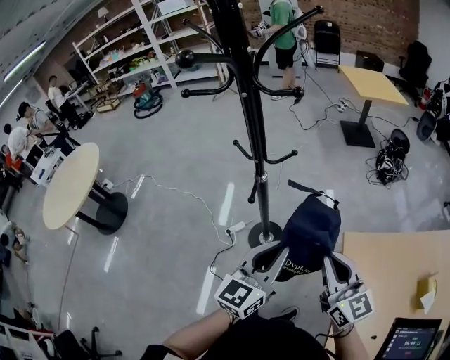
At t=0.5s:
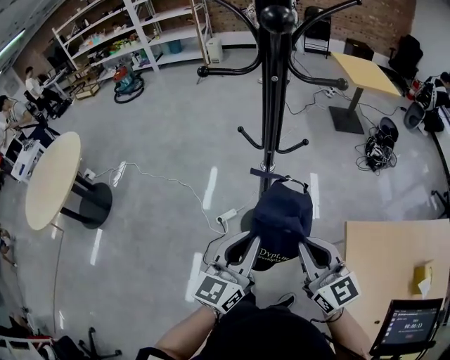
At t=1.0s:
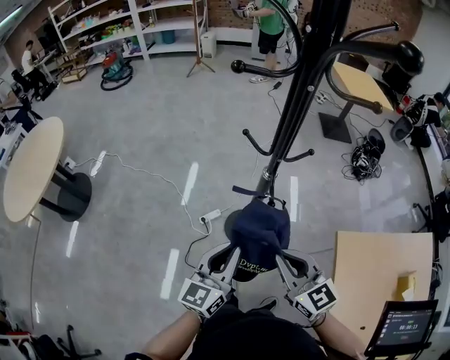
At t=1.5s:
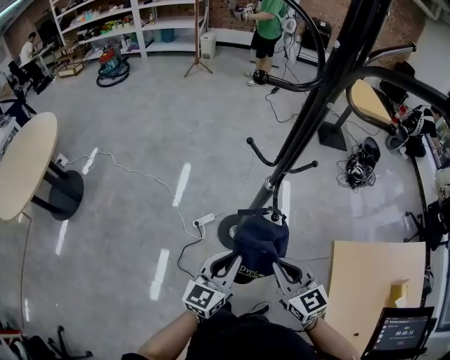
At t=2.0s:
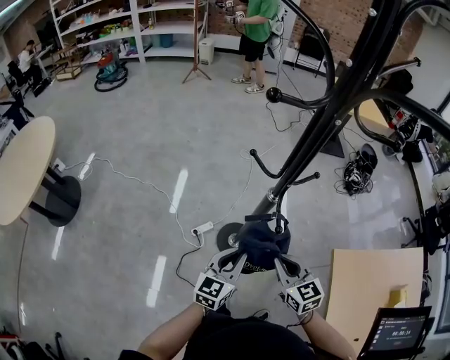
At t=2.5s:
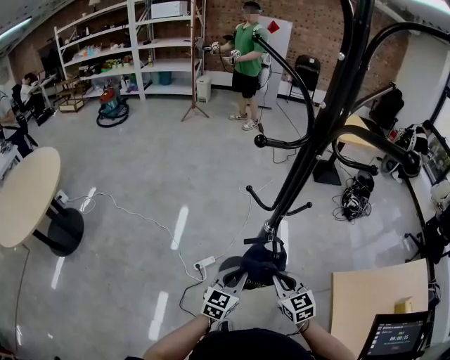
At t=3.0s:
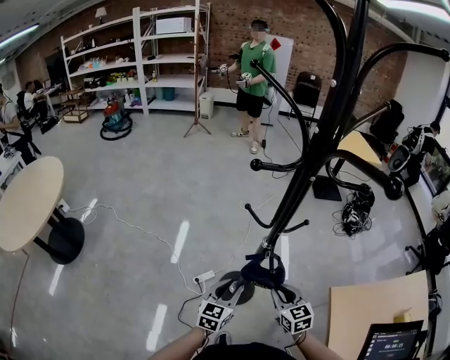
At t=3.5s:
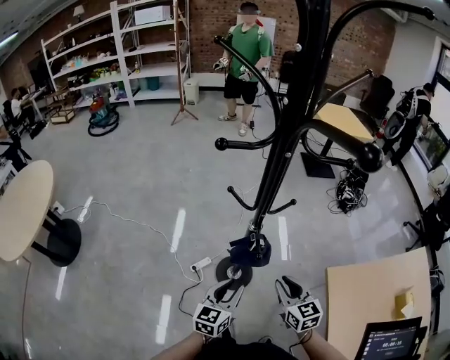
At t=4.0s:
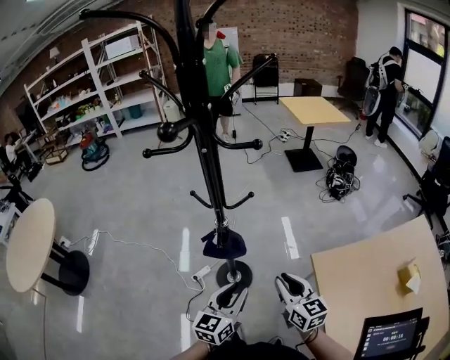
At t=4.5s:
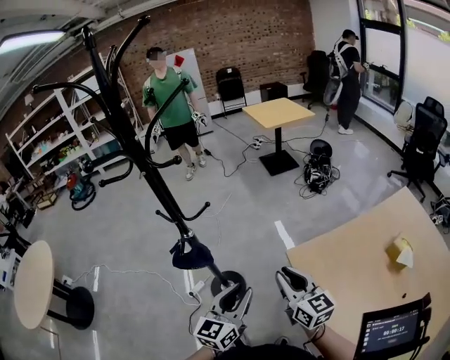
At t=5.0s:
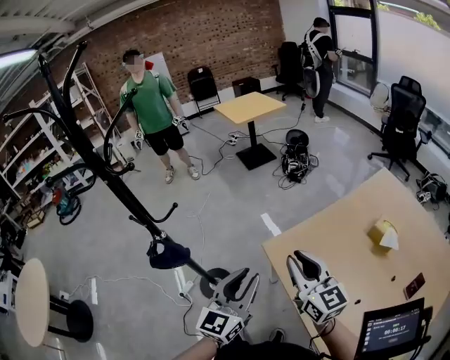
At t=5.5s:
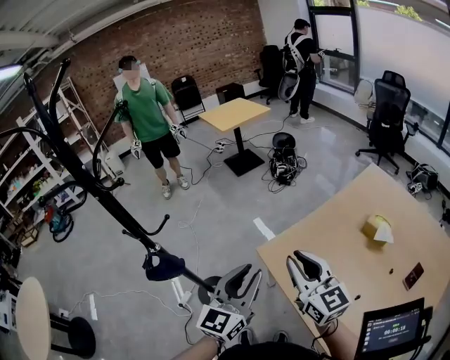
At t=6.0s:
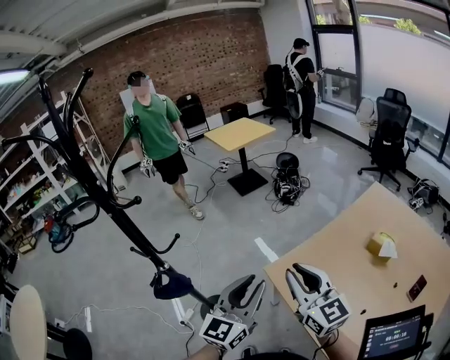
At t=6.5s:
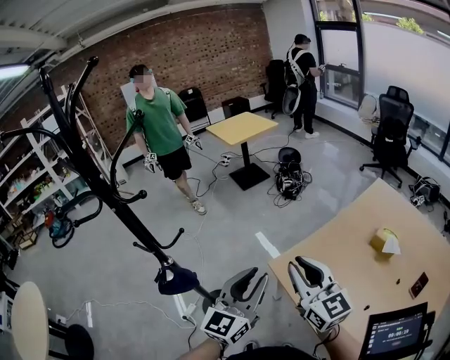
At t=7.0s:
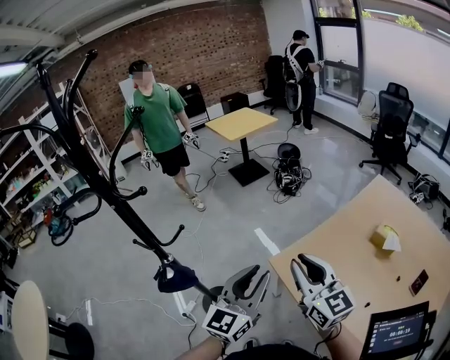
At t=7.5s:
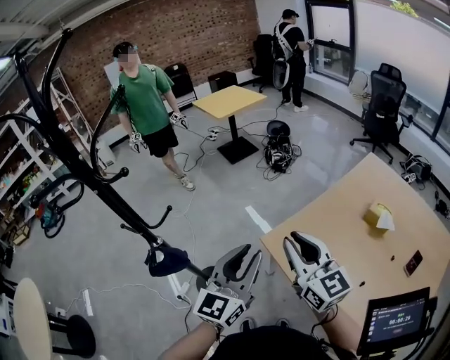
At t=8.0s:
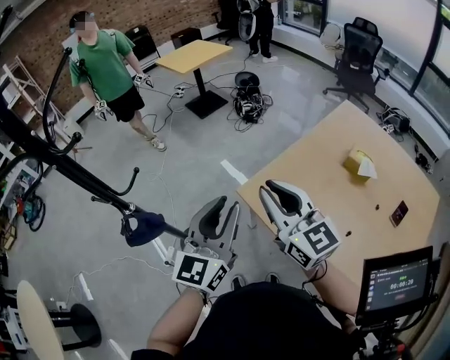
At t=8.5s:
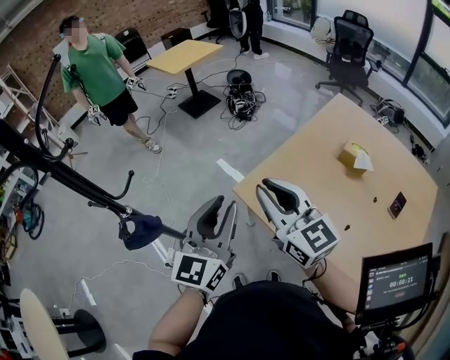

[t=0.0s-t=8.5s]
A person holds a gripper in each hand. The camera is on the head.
t=0.0s to t=2.0s: Both grippers move to the left, downward and forward, roughly 25 cm. The right gripper turns by approximately 30 degrees.
t=2.0s to t=4.0s: The left gripper goes approximately 15 cm to the right, upward and backward, while the right gripper is displaced to the right by some 15 cm, and turns by approximately 20 degrees.
t=4.0s to t=6.5s: Both grippers travel together to the right and upward, approximately 25 cm. The right gripper changes its angle by approximately 30 degrees; the left gripper changes its angle by about 30 degrees.
t=6.5s to t=8.5s: The grippers stay close to where they were, moving slightly.

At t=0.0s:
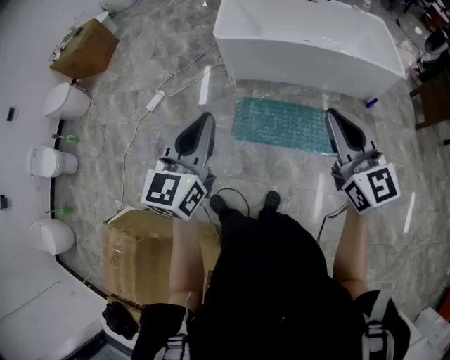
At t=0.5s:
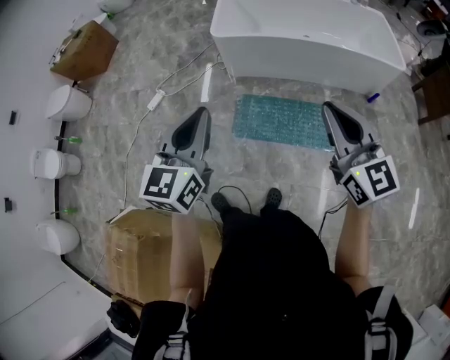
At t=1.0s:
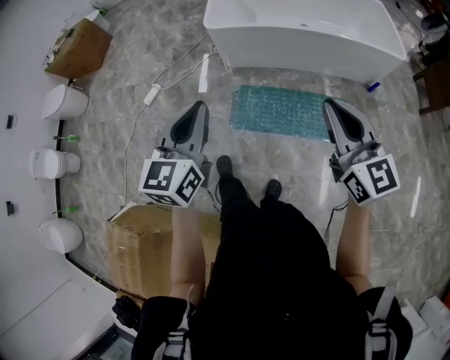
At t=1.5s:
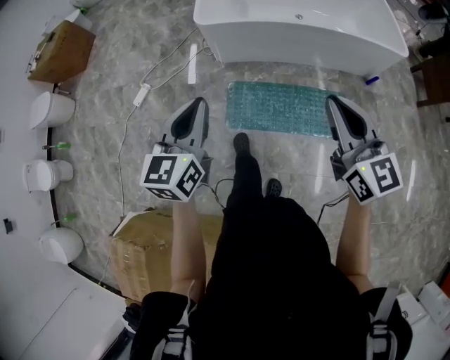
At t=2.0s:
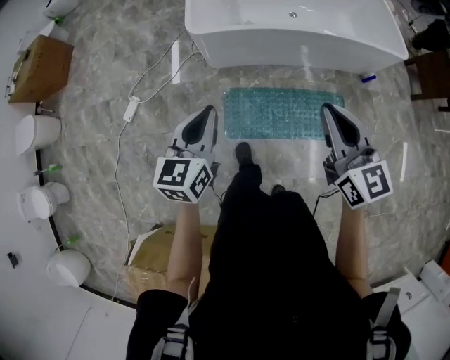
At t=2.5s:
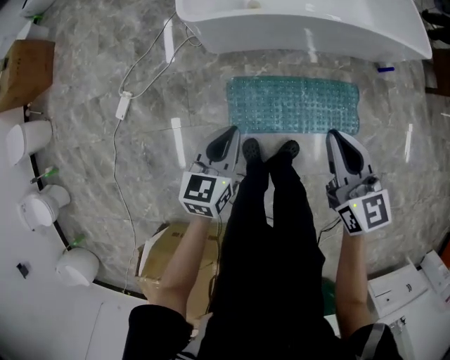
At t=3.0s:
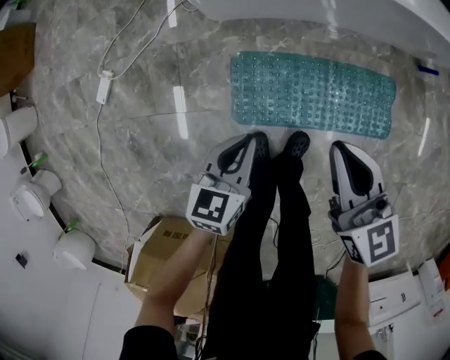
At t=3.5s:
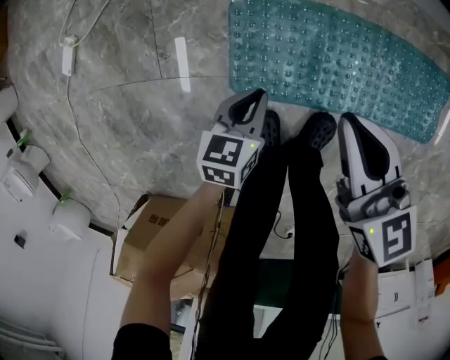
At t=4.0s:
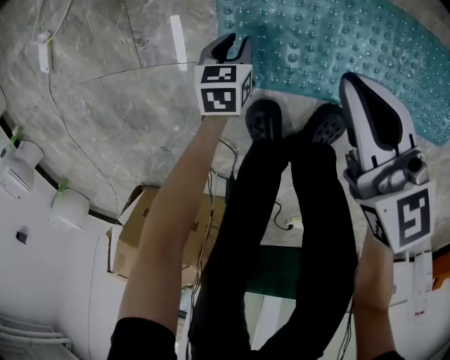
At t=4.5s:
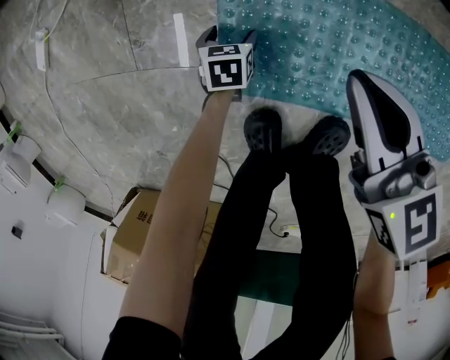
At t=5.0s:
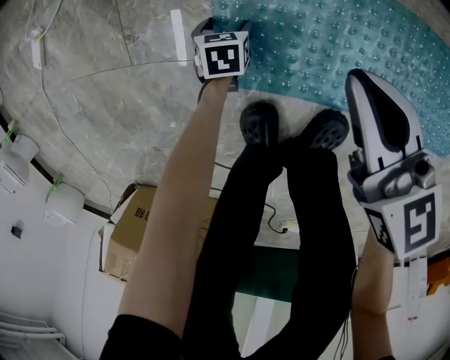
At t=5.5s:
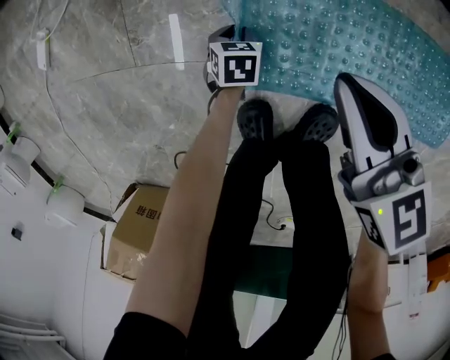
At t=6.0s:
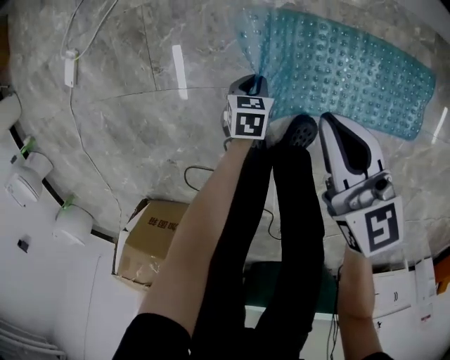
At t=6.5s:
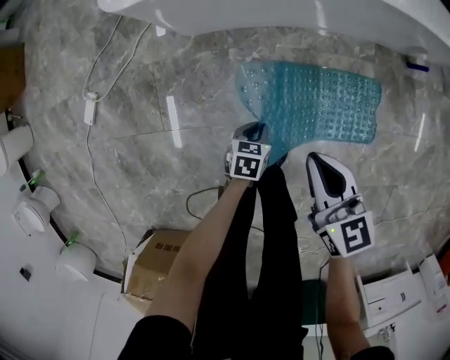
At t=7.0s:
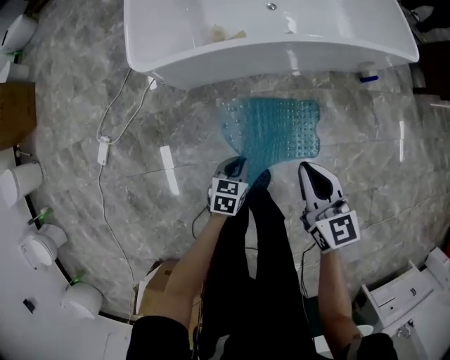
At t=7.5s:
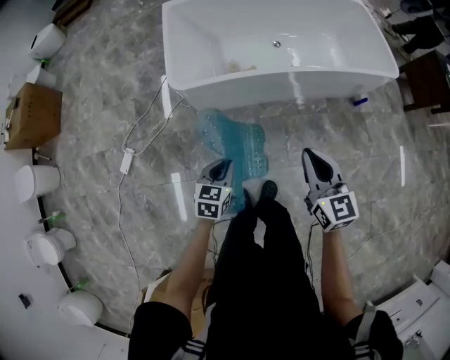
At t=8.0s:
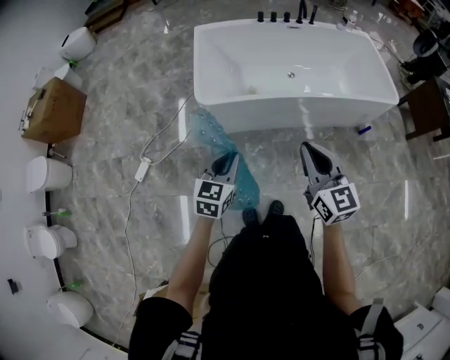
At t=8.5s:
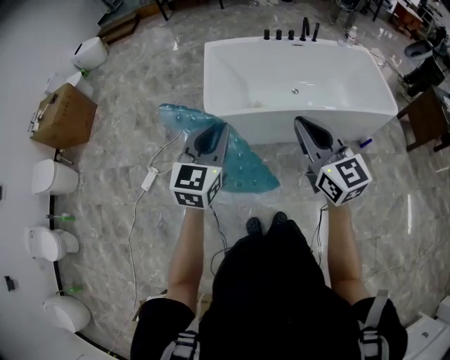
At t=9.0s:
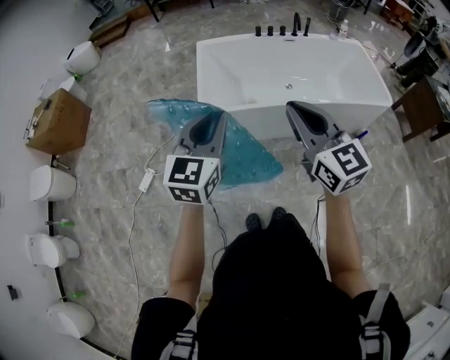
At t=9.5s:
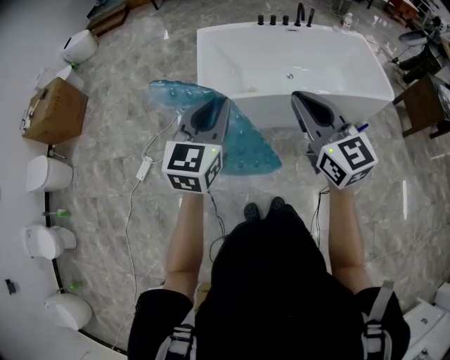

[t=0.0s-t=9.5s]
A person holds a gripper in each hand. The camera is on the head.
t=0.0s to t=2.0s: The left gripper heads forward and downward, covering some 35 cm. Meanwhile the right gripper shifts about 25 cm forward.
t=2.0s to t=4.0s: Both grippers move downward, some 90 cm. The left gripper tips its fingers downward by some 40 degrees; the right gripper rotates approximately 30 degrees.
t=4.0s to t=5.5s: The left gripper is displaced downward by roughly 5 cm, and opens, then closes once more.
t=5.5s to t=7.5s: The grippers both shift upward by about 70 cm. The right gripper rotates approximately 30 degrees. Meanwhile the left gripper tips its fingers upward by some 30 degrees.
t=7.5s to t=9.5s: The left gripper travels upward by roughly 35 cm, and angles its fingers upward, by about 30 degrees. Meanwhile the right gripper travels upward and to the left by roughly 25 cm, and swivels some 20 degrees.

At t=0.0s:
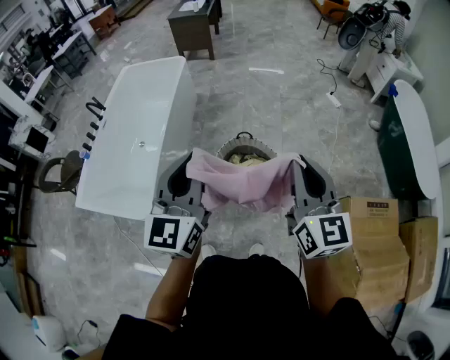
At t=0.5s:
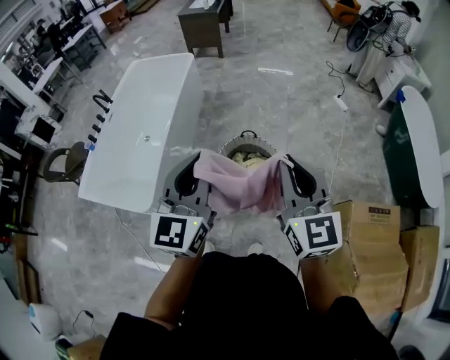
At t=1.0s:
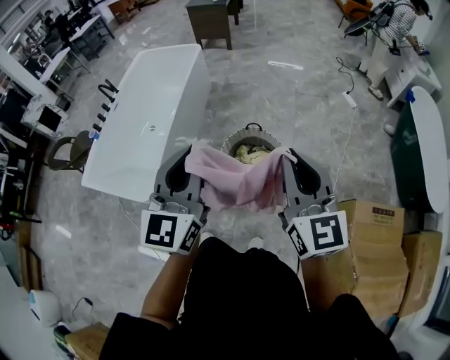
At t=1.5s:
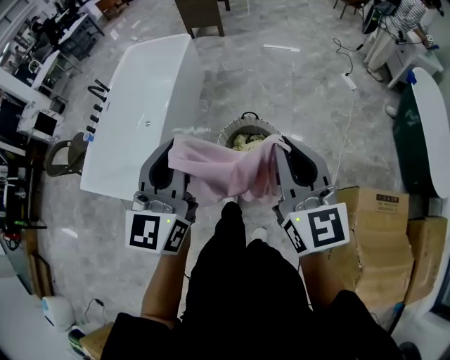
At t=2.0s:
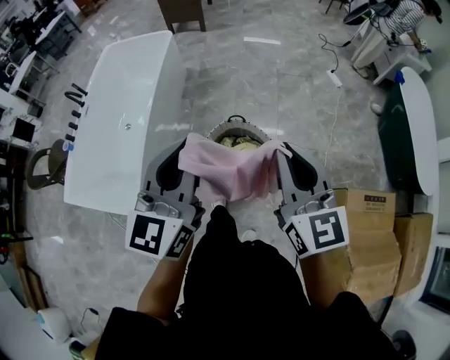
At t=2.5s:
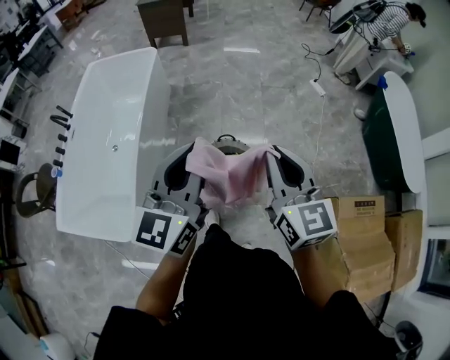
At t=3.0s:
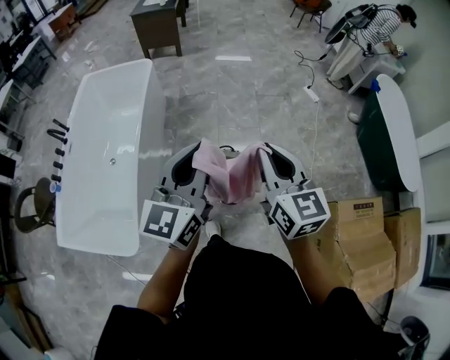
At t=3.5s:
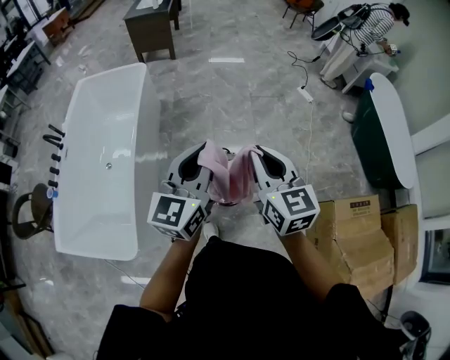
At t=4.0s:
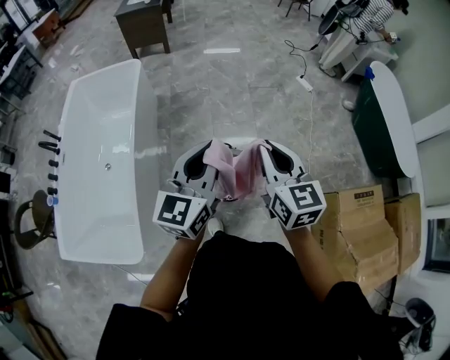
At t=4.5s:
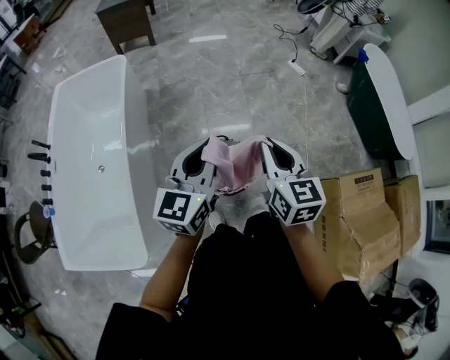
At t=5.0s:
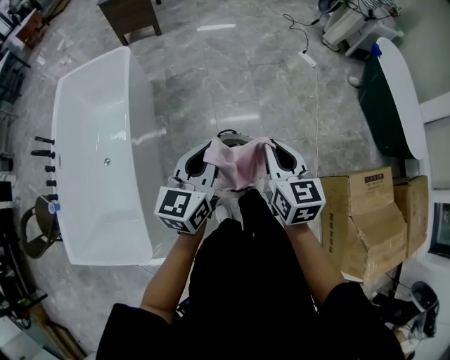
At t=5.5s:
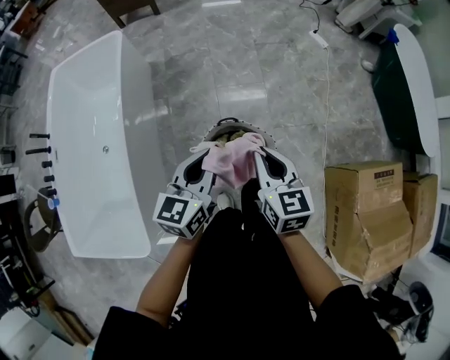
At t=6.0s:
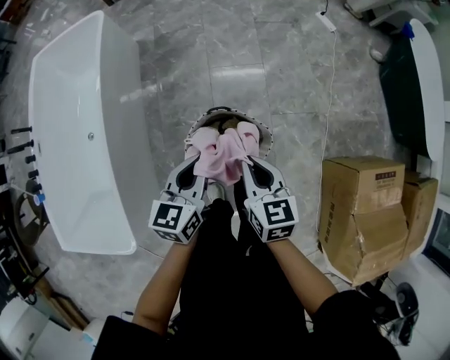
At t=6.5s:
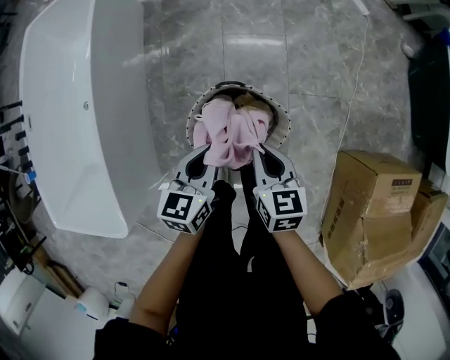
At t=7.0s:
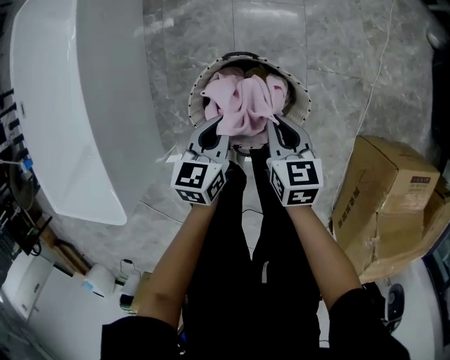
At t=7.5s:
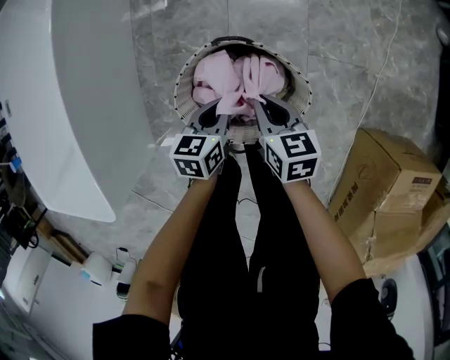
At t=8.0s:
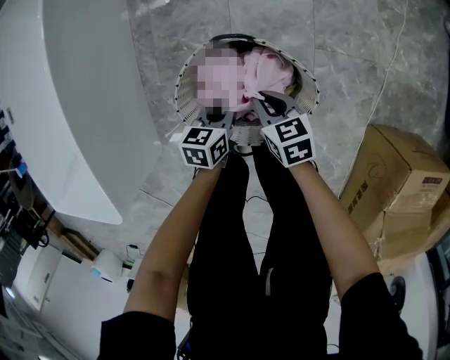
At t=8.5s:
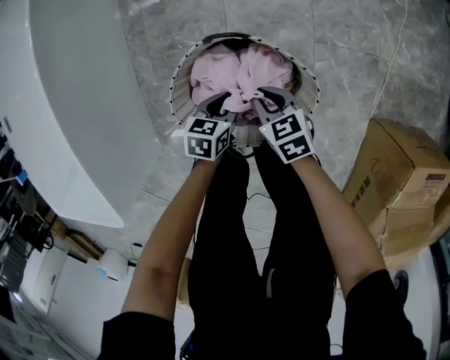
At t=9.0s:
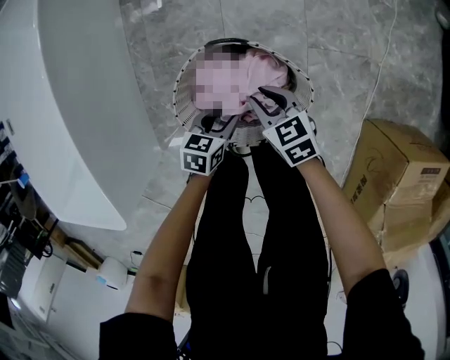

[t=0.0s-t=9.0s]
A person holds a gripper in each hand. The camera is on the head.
t=0.0s to t=2.0s: Both grippers move forward, approximately 10 cm.
t=2.0s to t=4.5s: The right gripper shifts roughly 25 cm forward, downward and to the left, and rotates approximately 20 degrees. The left gripper travels forward and downward by approximately 25 cm, and turns by about 20 degrees.
t=4.5s to t=7.0s: Both grippers travel together downward, roughly 50 cm. The right gripper swivels roughly 30 degrees. Meanwhile the left gripper tilts its fingers approximately 30 degrees downward.
t=7.0s to t=9.0s: The two grippers go about 15 cm downward. The left gripper changes its angle by roughly 20 degrees, and opens up; the right gripper swivels roughly 20 degrees.
